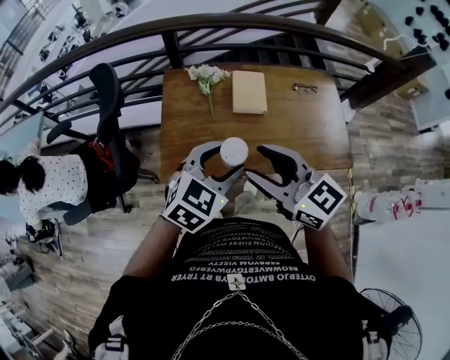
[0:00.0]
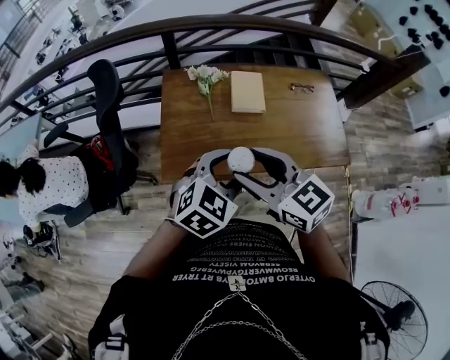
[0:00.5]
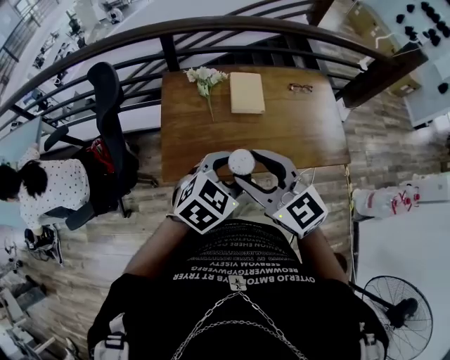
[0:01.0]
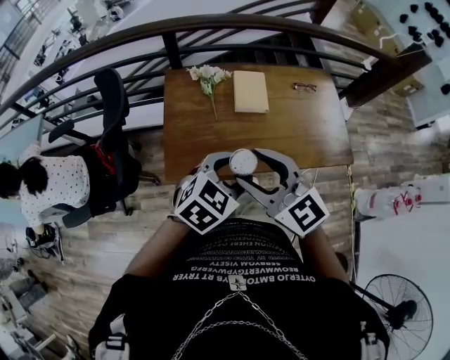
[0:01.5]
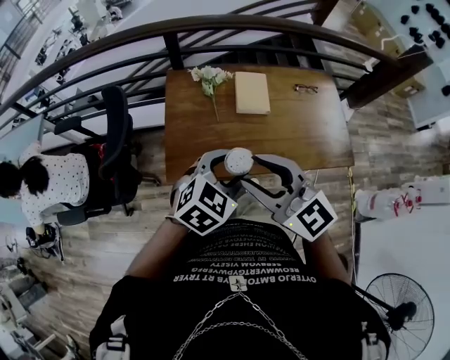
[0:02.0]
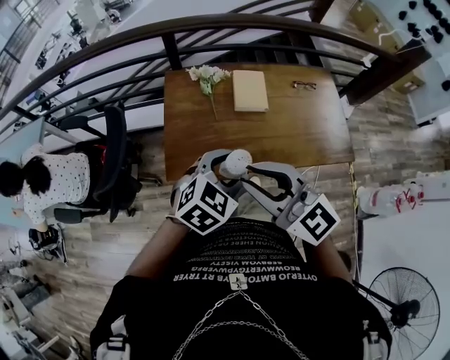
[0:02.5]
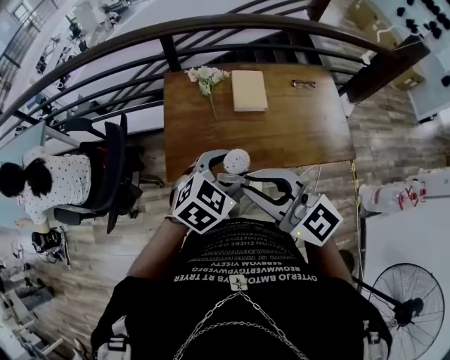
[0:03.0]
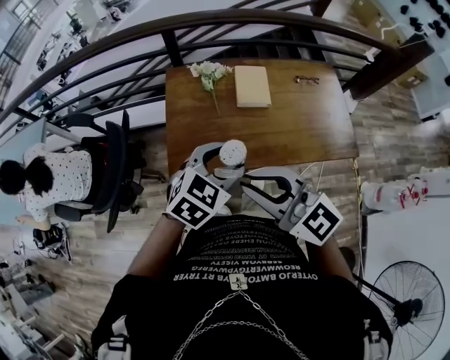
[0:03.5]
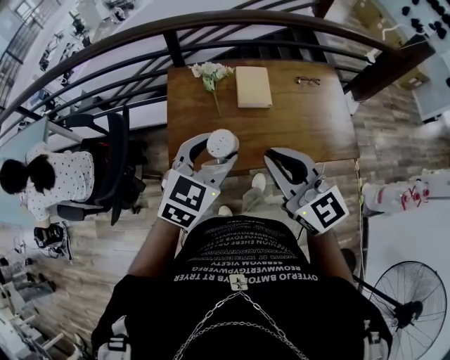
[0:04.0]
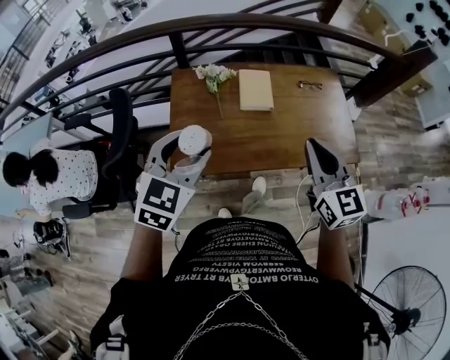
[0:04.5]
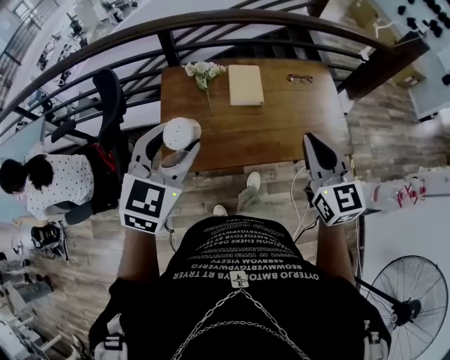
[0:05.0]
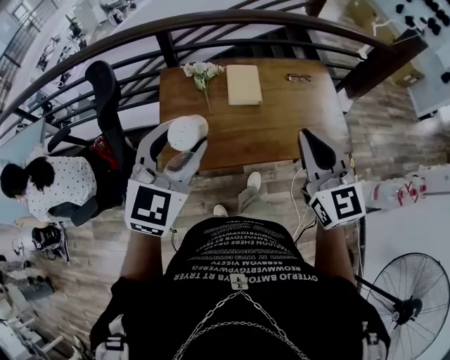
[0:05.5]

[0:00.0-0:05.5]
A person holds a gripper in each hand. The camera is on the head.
0:00.0 to 0:02.0: The right gripper shifts by about 5 cm.
0:02.0 to 0:03.5: The right gripper closes.
0:03.5 to 0:05.5: The left gripper moves upward and to the left, approximately 15 cm, and rotates approximately 30 degrees. Meanwhile the right gripper heads to the right, covering some 15 cm, and turns by roughly 40 degrees.

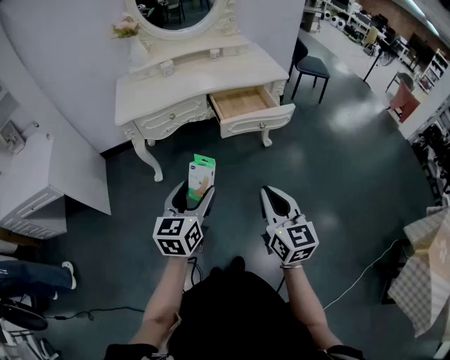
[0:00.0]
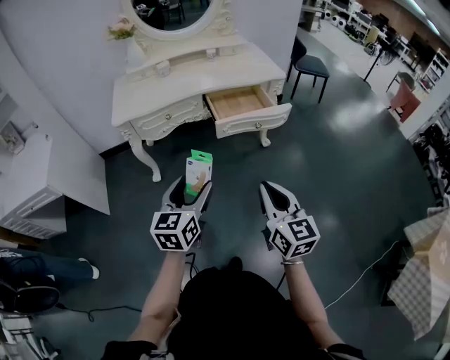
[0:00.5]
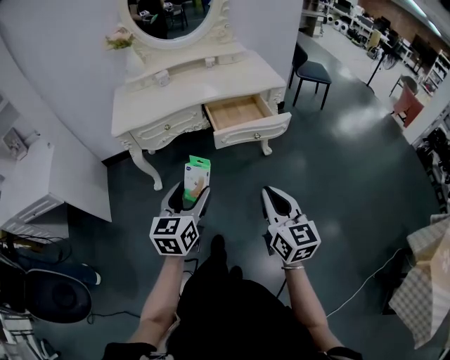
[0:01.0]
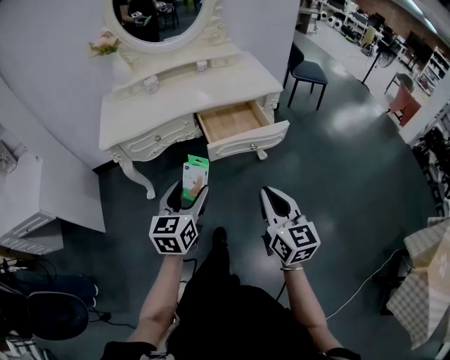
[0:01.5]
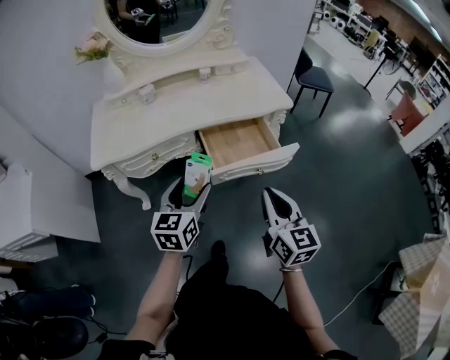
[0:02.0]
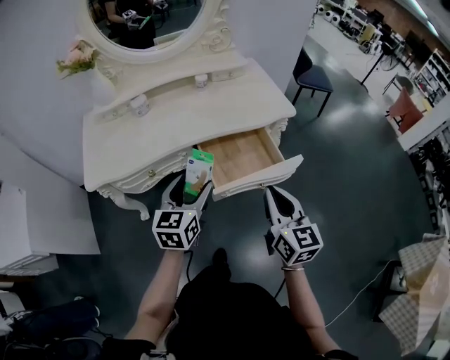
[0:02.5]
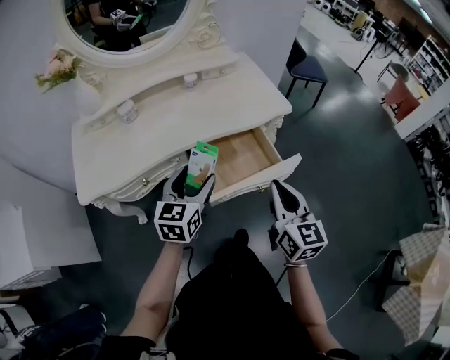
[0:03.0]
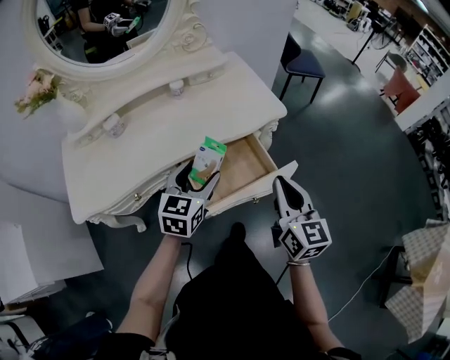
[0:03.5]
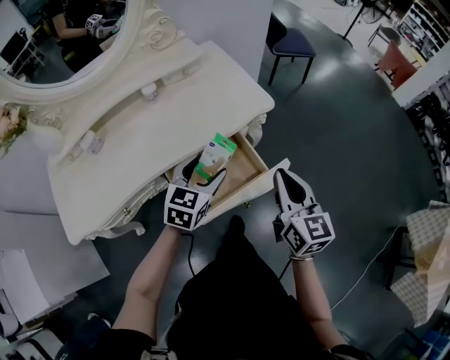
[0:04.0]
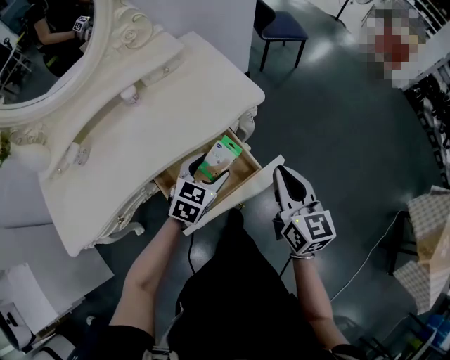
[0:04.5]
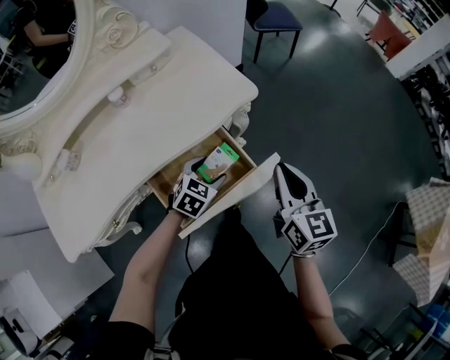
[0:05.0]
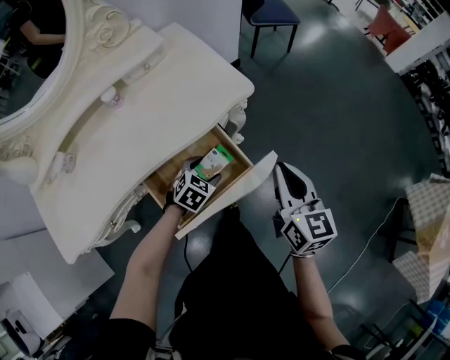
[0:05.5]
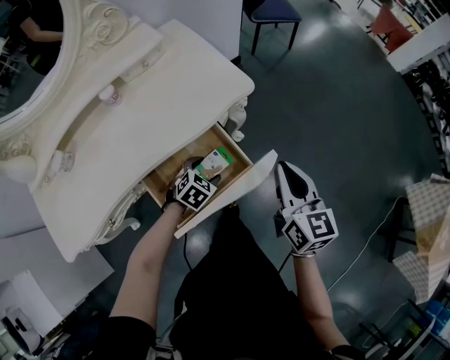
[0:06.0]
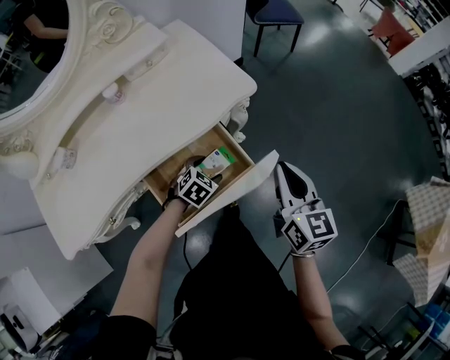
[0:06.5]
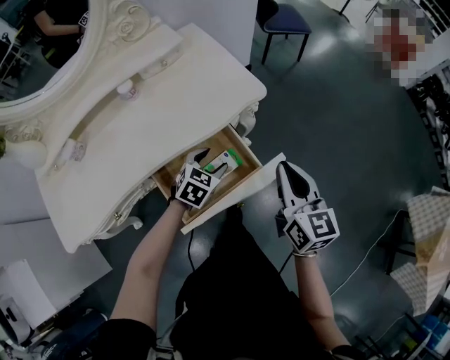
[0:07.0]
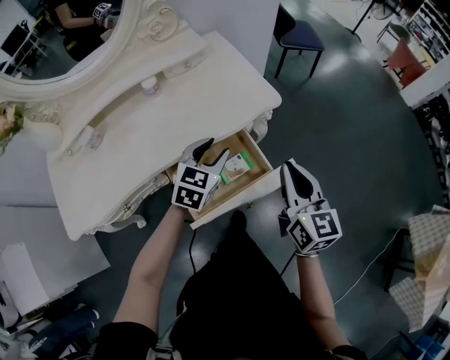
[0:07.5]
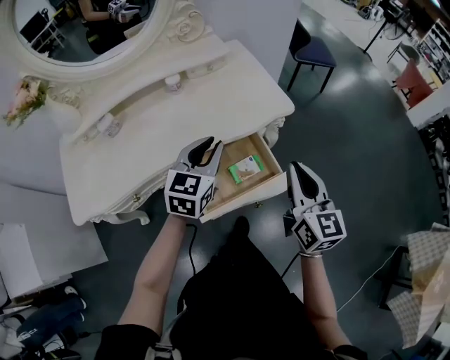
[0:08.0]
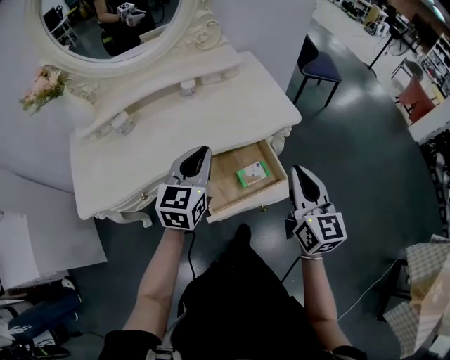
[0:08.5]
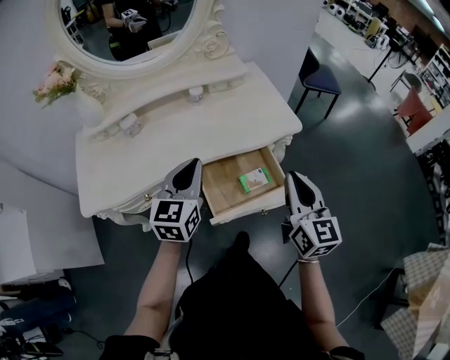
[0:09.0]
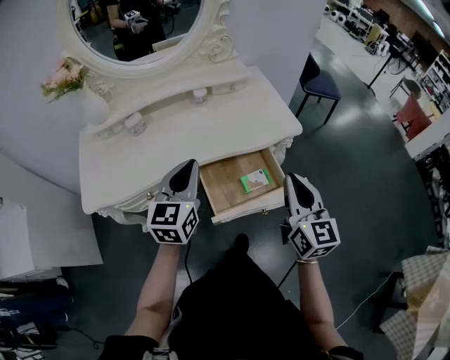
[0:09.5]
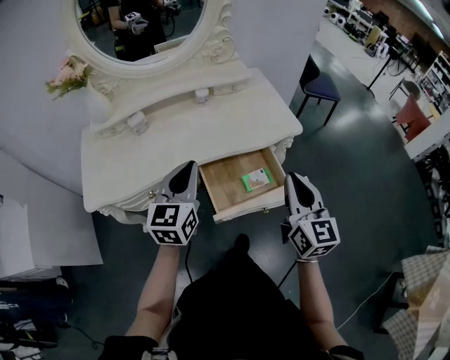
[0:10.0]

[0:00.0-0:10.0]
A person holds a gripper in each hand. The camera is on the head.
0:00.0 to 0:02.0: The grippers both shift forward by approximately 25 cm.
0:02.0 to 0:04.0: The two grippers go about 25 cm forward and to the right. The left gripper rotates roughly 30 degrees.
0:04.0 to 0:06.0: The left gripper heads downward, covering about 20 cm, and swivels approximately 40 degrees. Meanwhile the right gripper travels to the right by roughly 5 cm.
0:06.0 to 0:08.0: The left gripper heads upward, covering some 25 cm, tilts its fingers roughly 40 degrees upward, and closes up. Meanwhile the right gripper goes approximately 10 cm to the left and upward.
0:08.0 to 0:10.0: The right gripper heads to the left, covering some 5 cm. Meanwhile the left gripper shifts some 15 cm to the left, backward and upward.

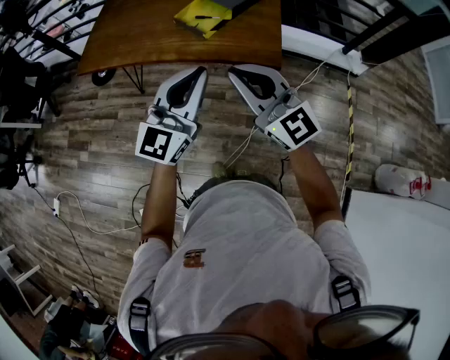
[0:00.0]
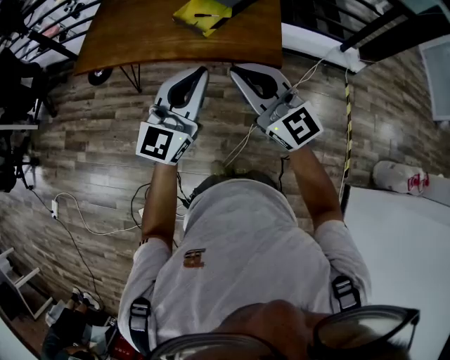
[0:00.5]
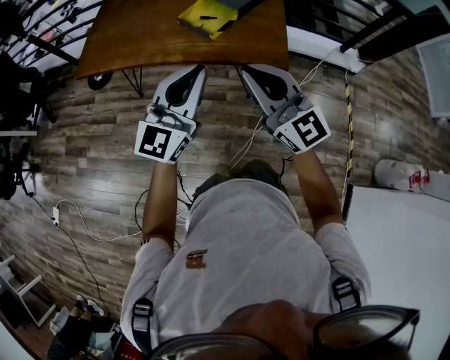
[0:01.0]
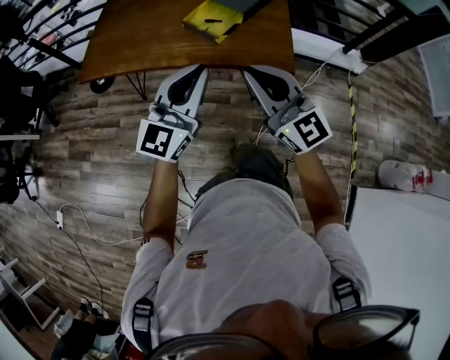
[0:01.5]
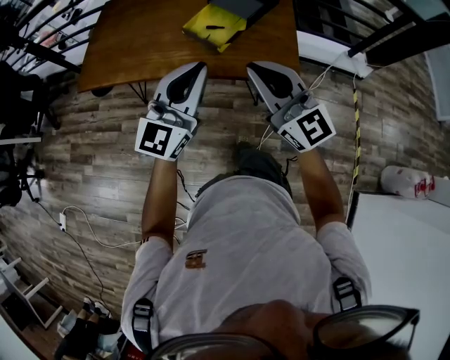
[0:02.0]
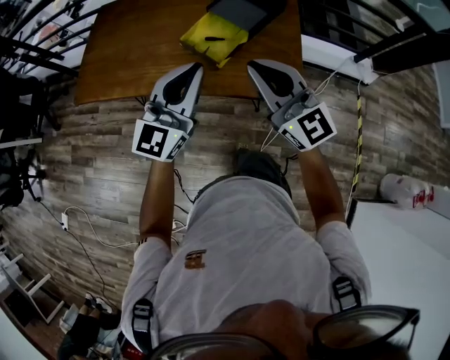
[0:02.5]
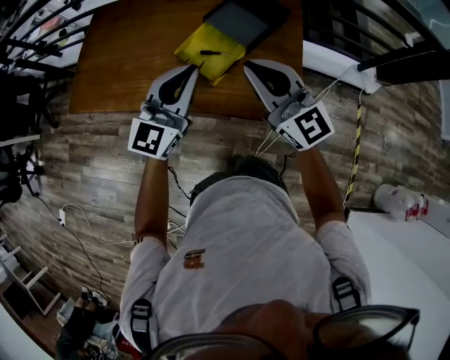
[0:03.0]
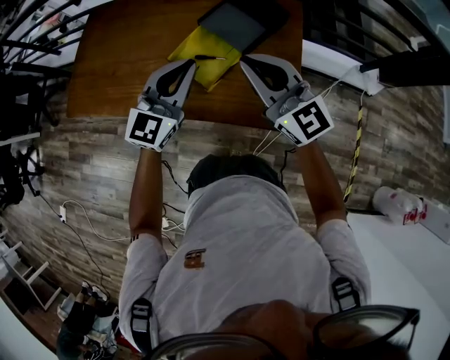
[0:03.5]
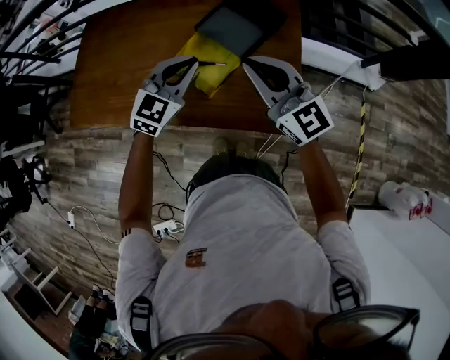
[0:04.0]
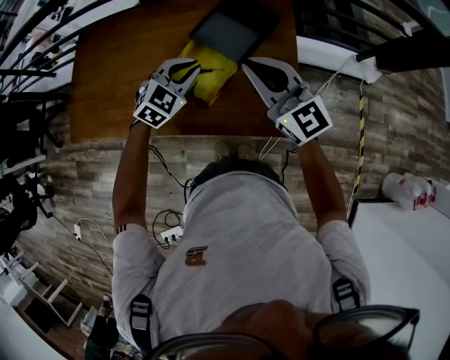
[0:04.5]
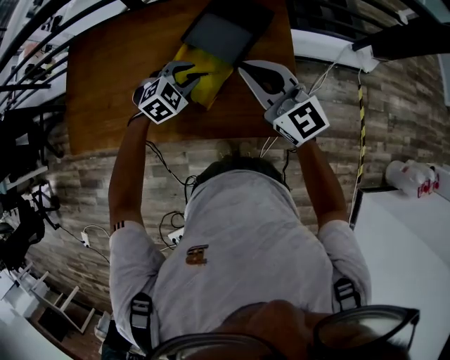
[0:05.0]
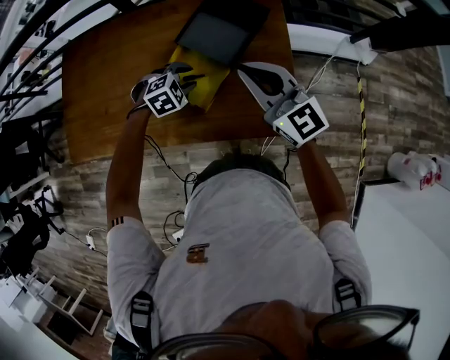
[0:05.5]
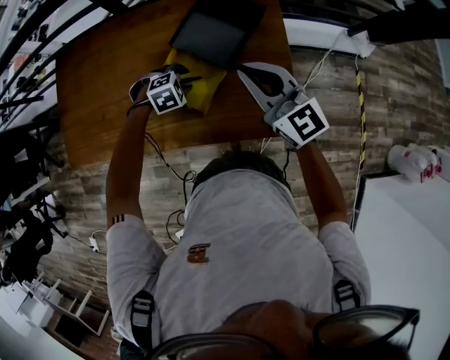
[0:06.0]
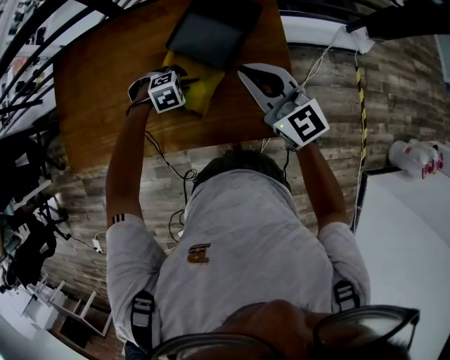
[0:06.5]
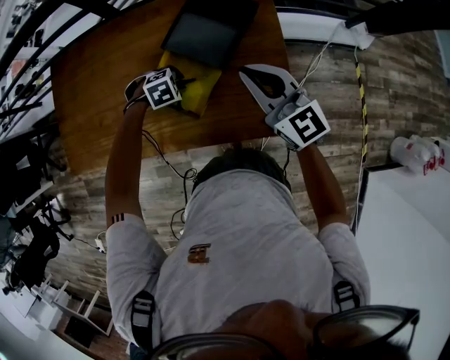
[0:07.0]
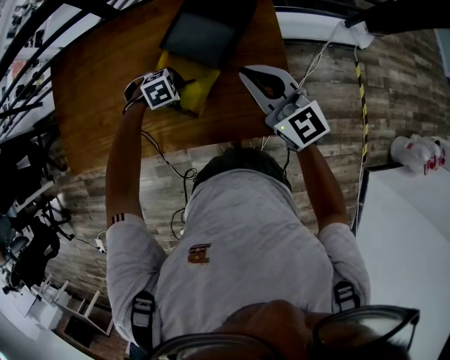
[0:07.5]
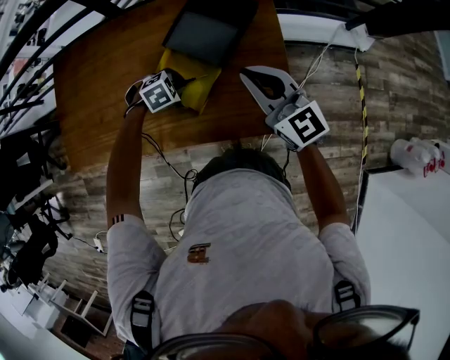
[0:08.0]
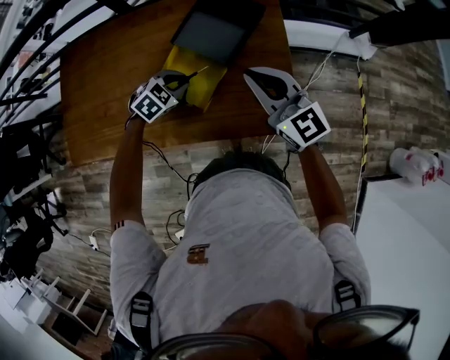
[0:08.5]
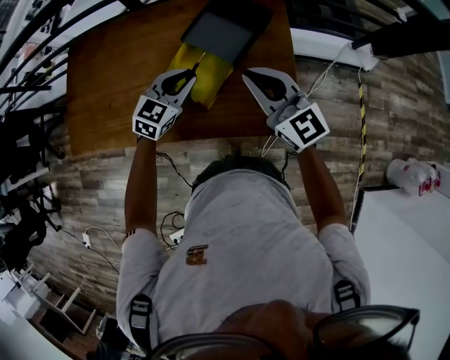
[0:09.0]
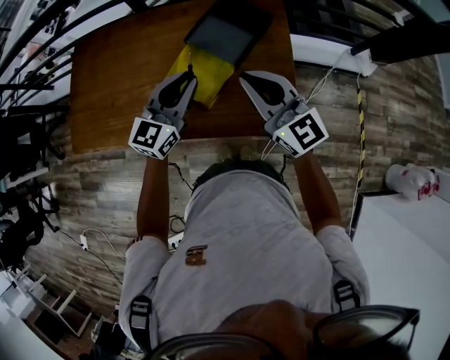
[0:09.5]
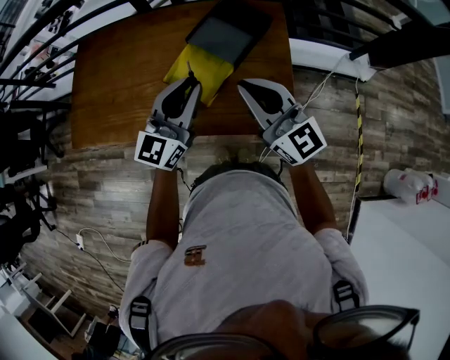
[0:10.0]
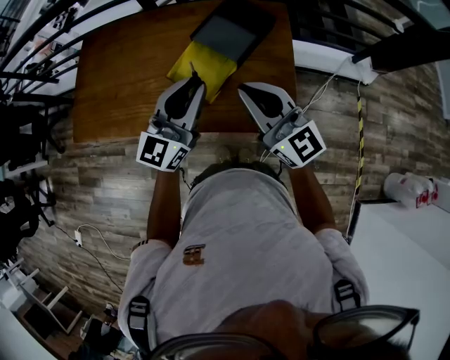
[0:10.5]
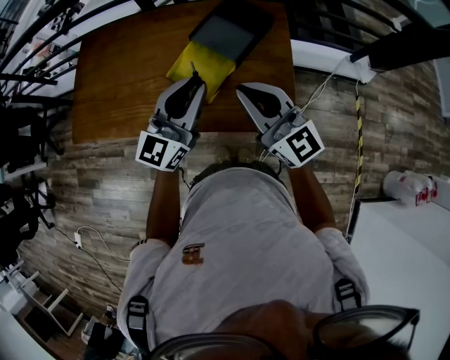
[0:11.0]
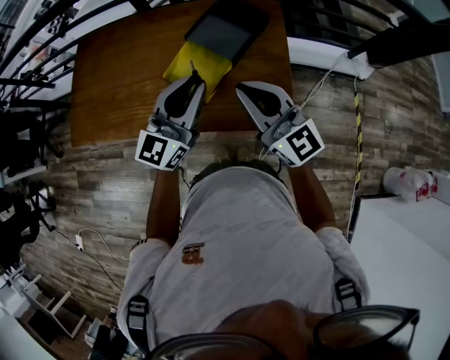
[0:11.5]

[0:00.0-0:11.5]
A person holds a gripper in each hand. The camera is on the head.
0:00.0 to 0:02.0: The right gripper travels forward by roughly 15 cm; the left gripper heads forward and to the left, covering roughly 15 cm.
0:02.0 to 0:04.0: The grippers both shift forward by some 35 cm. The left gripper tilts its fingers roughly 30 degrees downward.
0:04.0 to 0:06.0: The right gripper goes approximately 10 cm forward and downward. The left gripper shifts roughly 20 cm downward, angles its fingers downward, by some 50 degrees, and opens its fingers.
0:06.0 to 0:07.5: The left gripper closes its fingers.
0:07.5 to 0:09.5: The right gripper shifts by approximately 15 cm, while the left gripper goes some 25 cm upward, and angles its fingers upward, by approximately 70 degrees.
0:09.5 to 0:11.5: The right gripper travels backward by roughly 5 cm. The left gripper heads backward and upward, covering roughly 10 cm.
